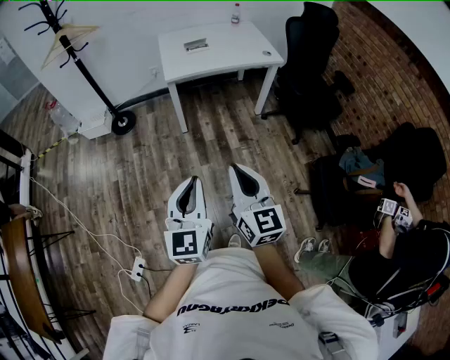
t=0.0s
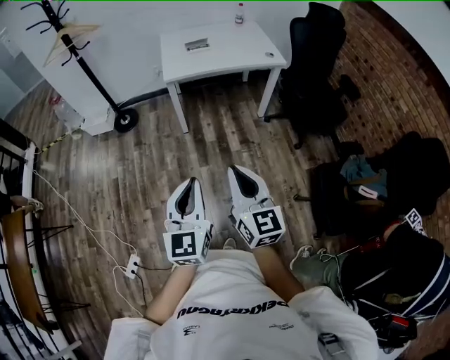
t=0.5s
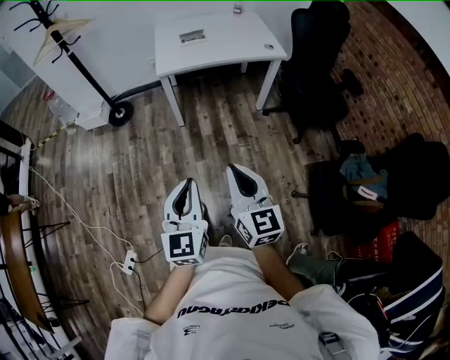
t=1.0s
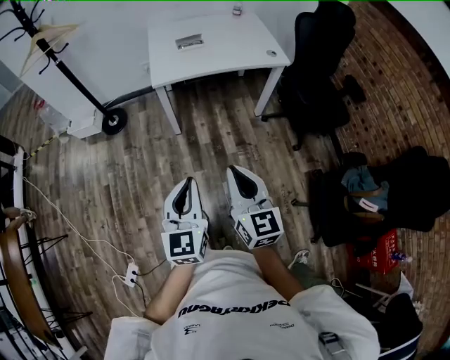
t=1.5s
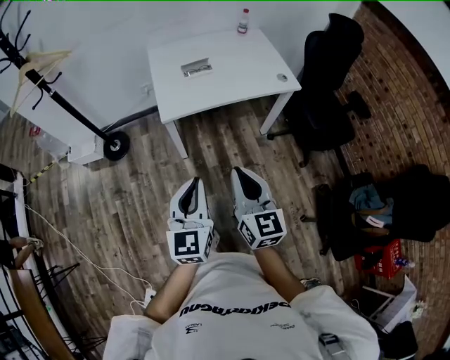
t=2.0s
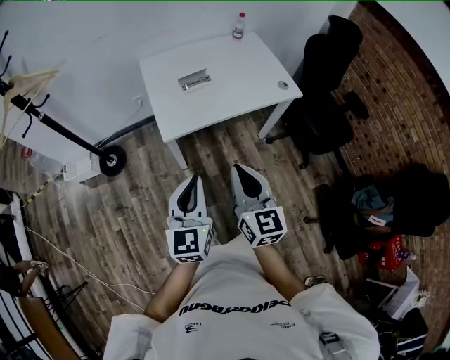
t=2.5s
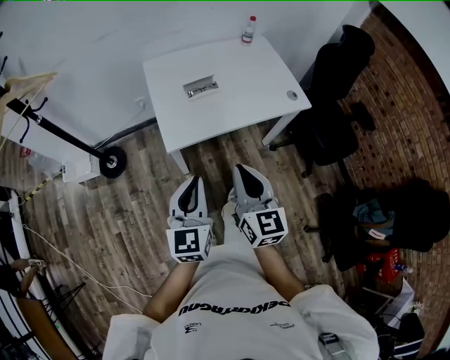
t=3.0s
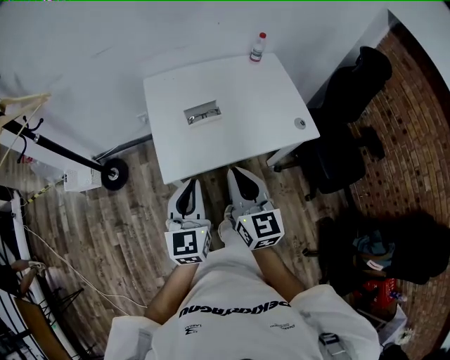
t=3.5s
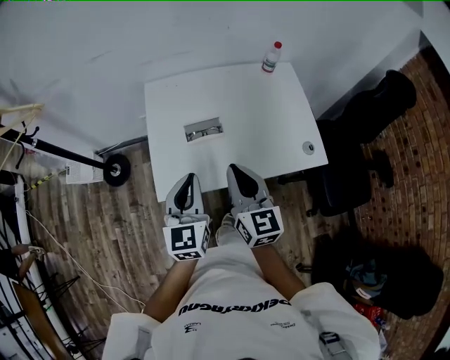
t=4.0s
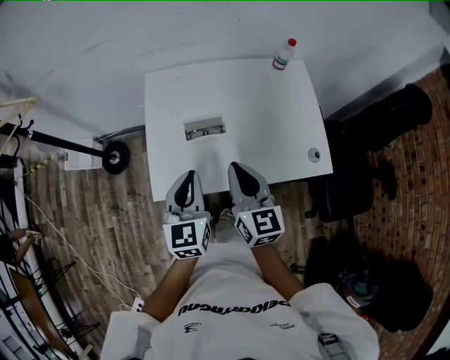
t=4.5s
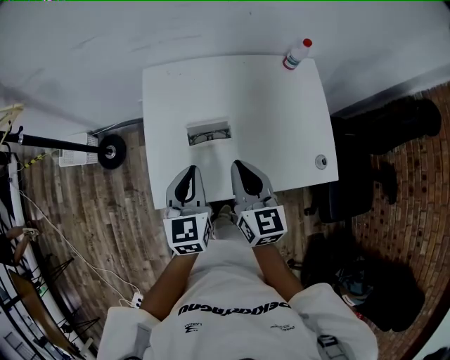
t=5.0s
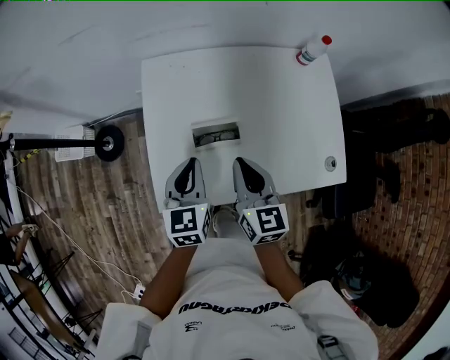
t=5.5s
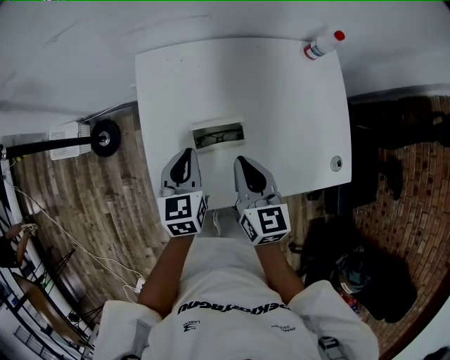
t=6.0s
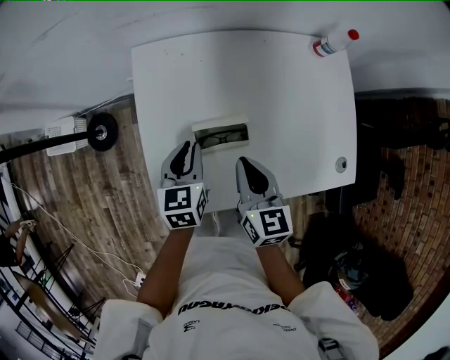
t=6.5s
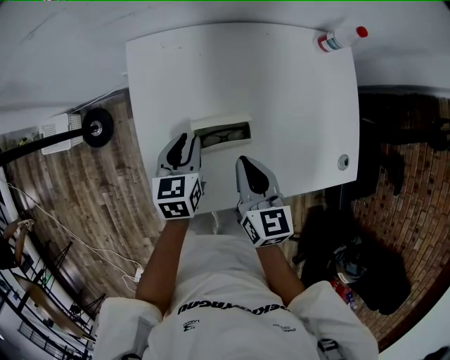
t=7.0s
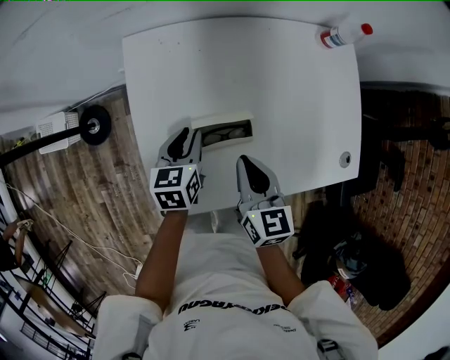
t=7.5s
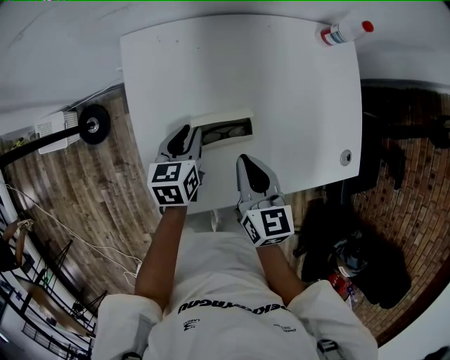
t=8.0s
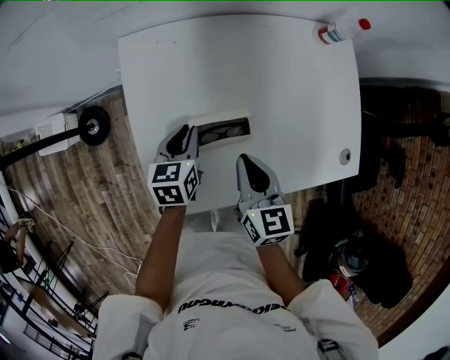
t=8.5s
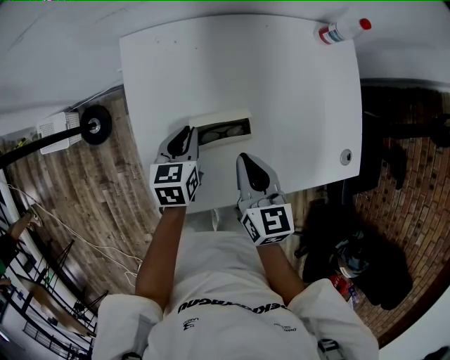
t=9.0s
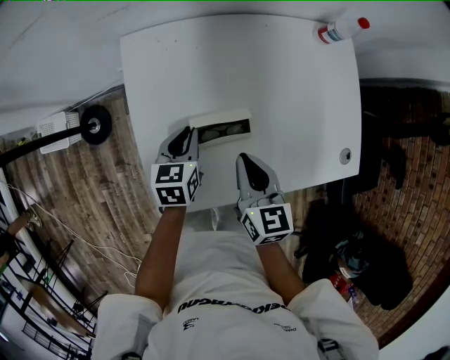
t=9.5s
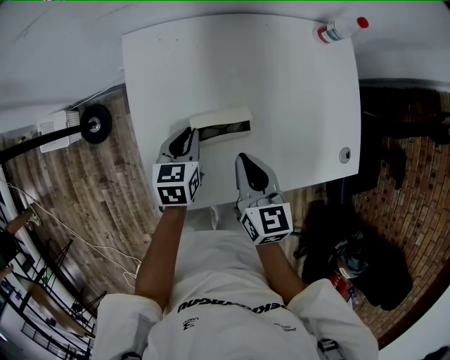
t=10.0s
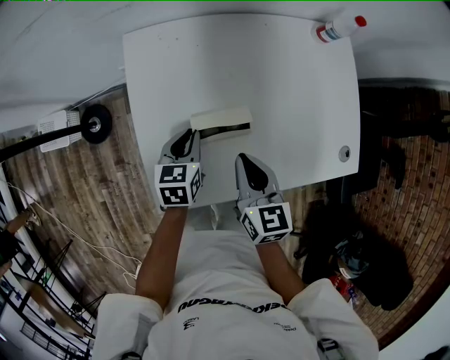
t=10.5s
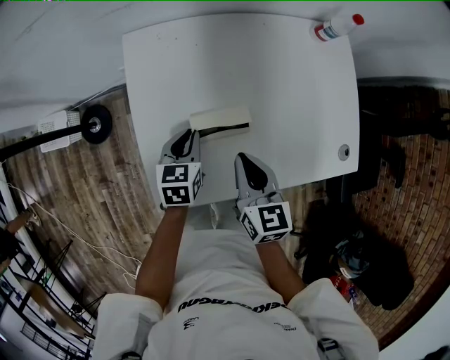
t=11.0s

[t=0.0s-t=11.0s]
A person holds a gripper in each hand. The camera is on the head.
t=0.0s to t=2.0s: Both grippers move forward, about 40 cm.
t=2.0s to t=3.5s: Both grippers travel together forward, about 35 cm.
t=3.5s to t=5.5s: The grippers both shift forward and downward by about 35 cm. The left gripper turns by approximately 20 degrees.
t=5.5s to t=7.5s: The right gripper moves downward, approximately 10 cm. Meanwhile the left gripper moves downward and forward, roughly 20 cm, changes its angle by roughly 20 degrees, and opens its fingers.
t=7.5s to t=9.0s: Neither gripper changes place.
t=9.0s to t=11.0s: The grippers make only small movements.

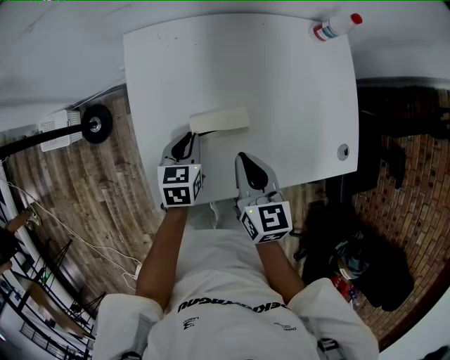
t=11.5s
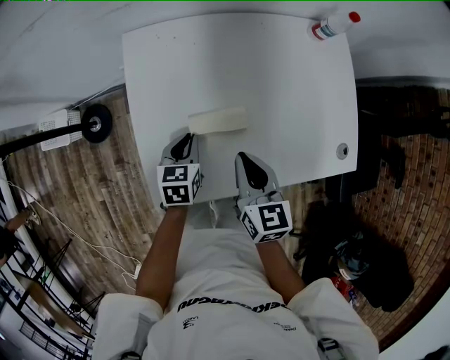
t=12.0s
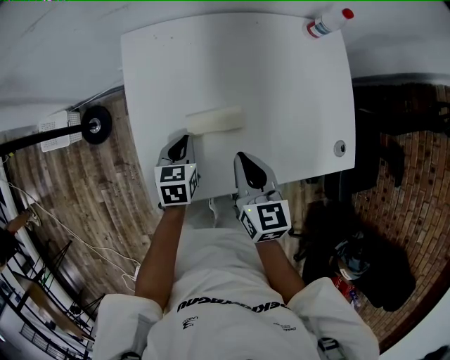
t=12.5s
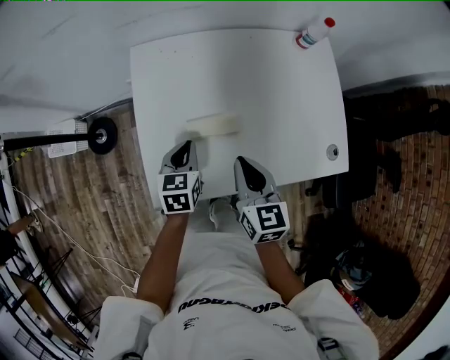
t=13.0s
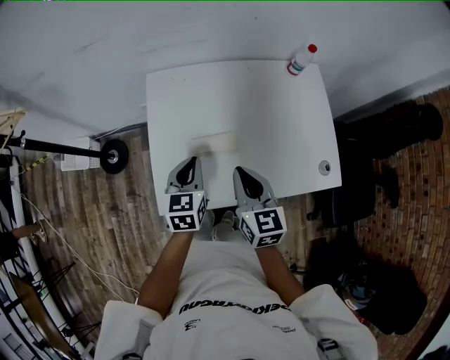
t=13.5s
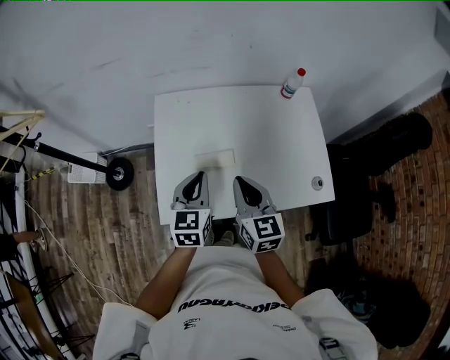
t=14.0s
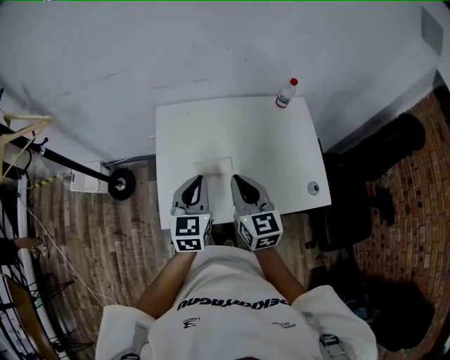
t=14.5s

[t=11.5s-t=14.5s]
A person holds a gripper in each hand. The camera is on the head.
t=11.5s to t=13.0s: The left gripper moves upward, about 5 cm. The right gripper shifts by some 5 cm.
t=13.0s to t=14.5s: The two grippers go about 20 cm upward. The left gripper swivels some 20 degrees.

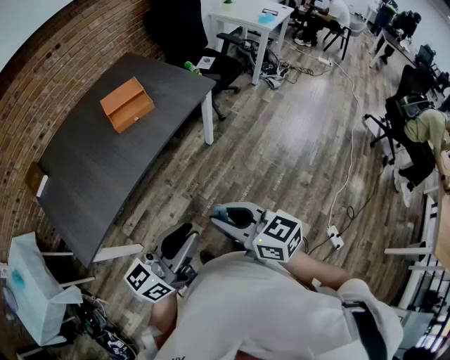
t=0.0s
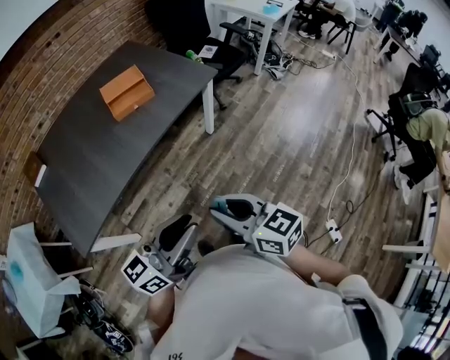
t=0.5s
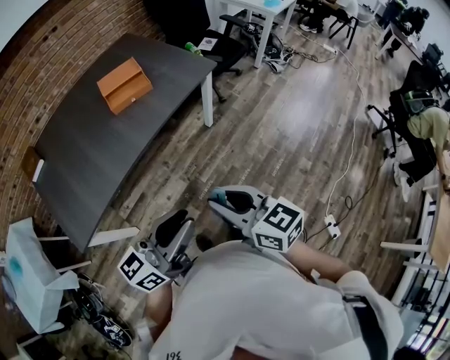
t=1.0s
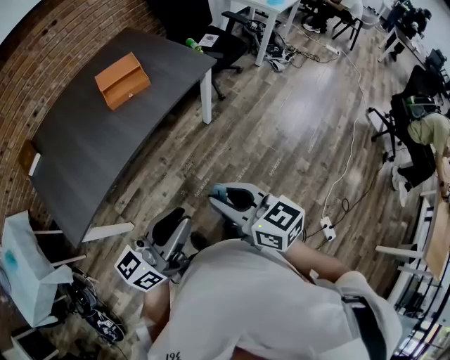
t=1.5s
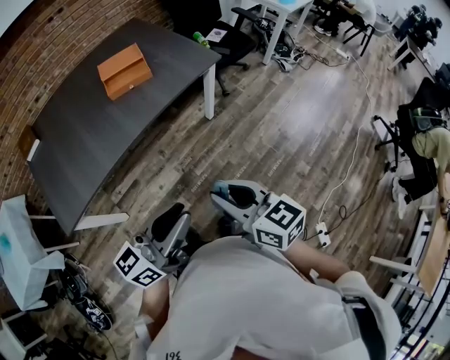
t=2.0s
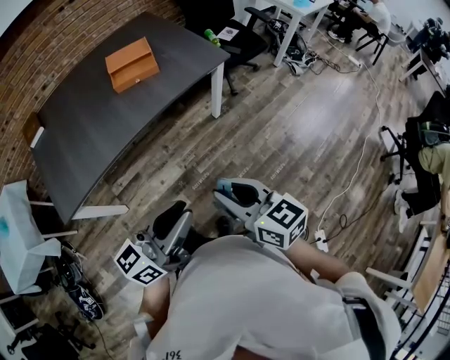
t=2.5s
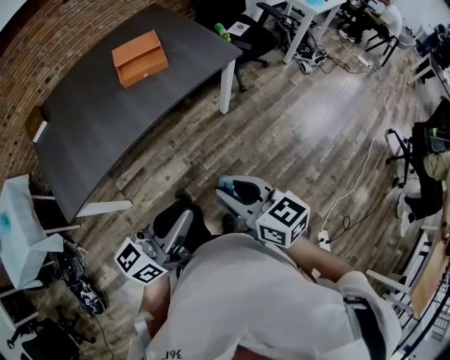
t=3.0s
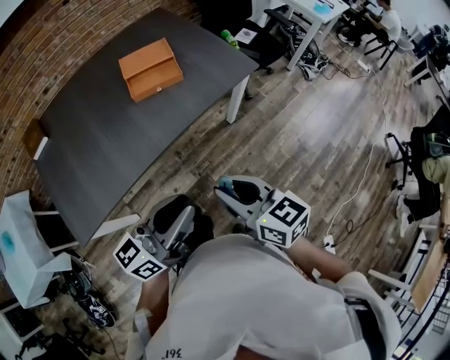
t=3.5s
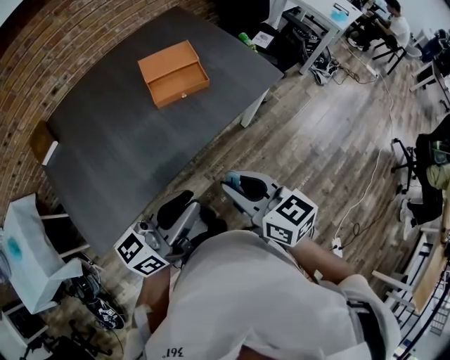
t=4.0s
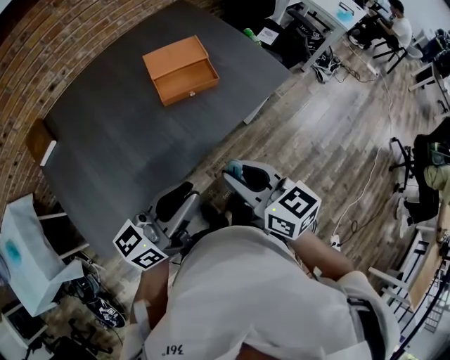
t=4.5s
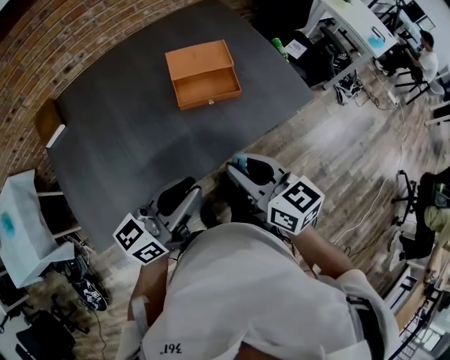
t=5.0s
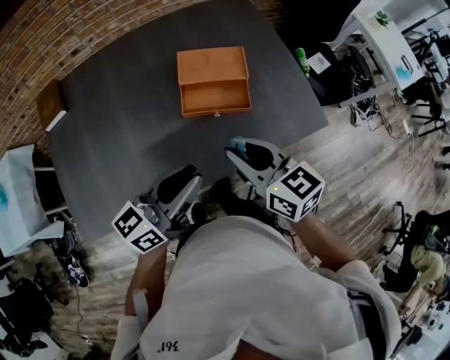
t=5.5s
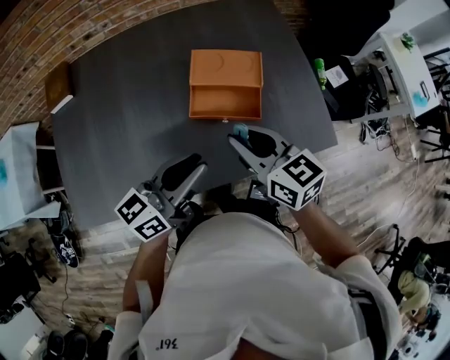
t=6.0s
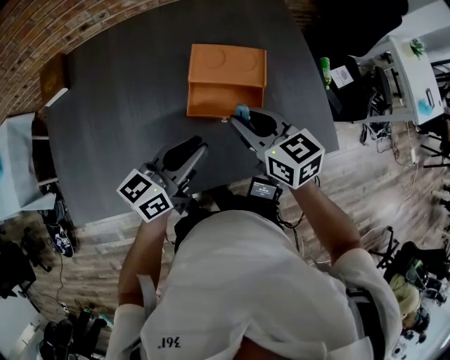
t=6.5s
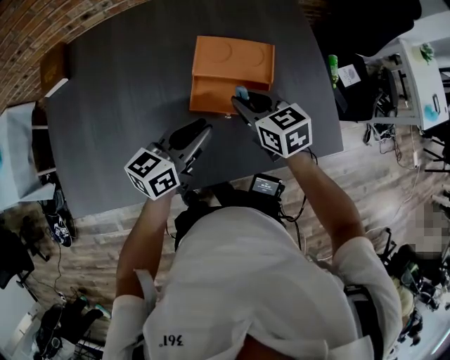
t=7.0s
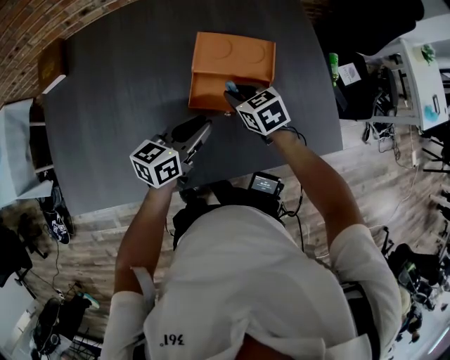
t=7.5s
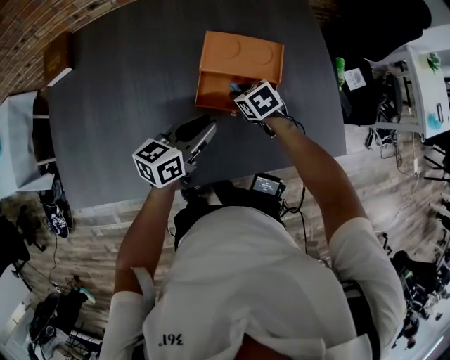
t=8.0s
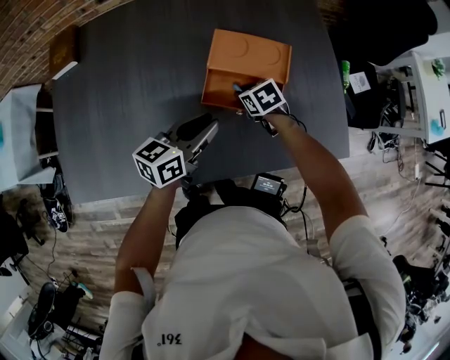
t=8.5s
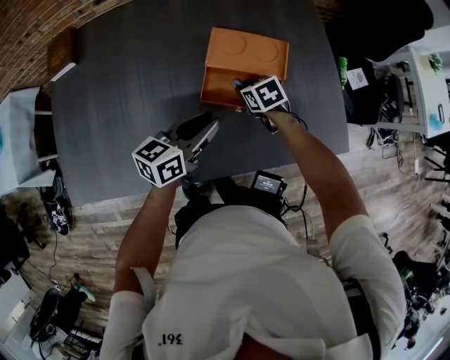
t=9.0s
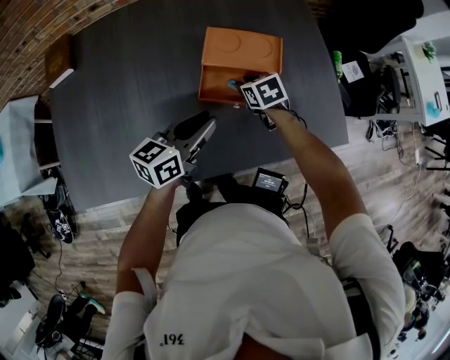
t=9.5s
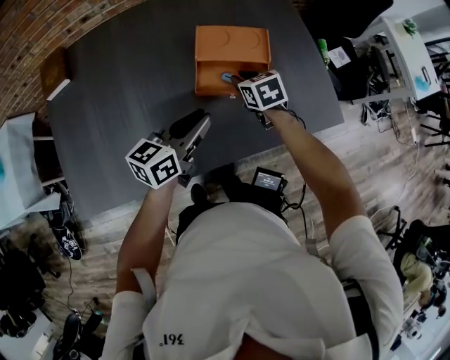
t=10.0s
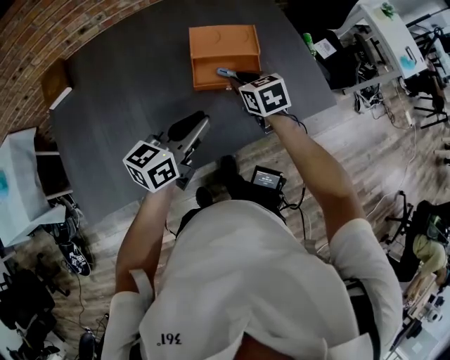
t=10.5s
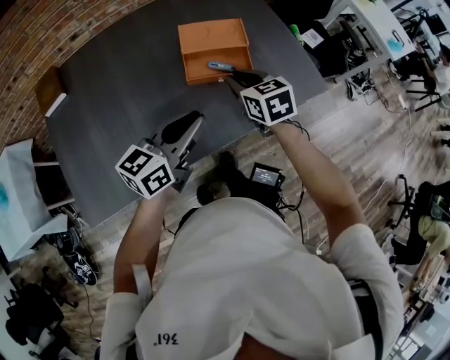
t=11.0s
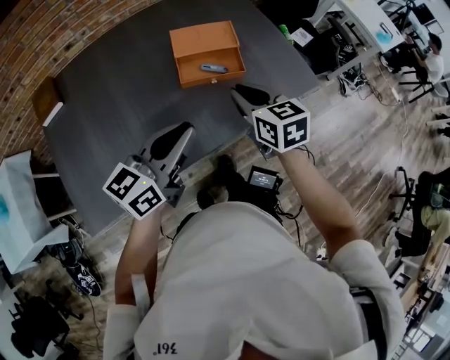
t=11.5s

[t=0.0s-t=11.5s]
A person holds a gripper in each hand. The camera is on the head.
t=0.0s to t=2.0s: The right gripper heads to the right, covering roughly 5 cm.
t=2.0s to t=4.0s: Both grippers travel together forward and to the left, approximately 25 cm.
t=4.0s to t=6.0s: Both grippers move forward, some 25 cm. The right gripper rotates some 20 degrees, while the left gripper changes its angle by about 20 degrees.
t=6.0s to t=7.5s: Both grippers travel together downward and forward, about 20 cm. The right gripper changes its angle by roughly 30 degrees.
t=7.5s to t=9.5s: The right gripper ends up roughly 5 cm from where it was.
t=9.5s to t=11.5s: The right gripper goes approximately 30 cm upward and backward, and turns by about 30 degrees. Meanwhile the left gripper travels backward and upward by about 20 cm, and turns by approximately 20 degrees.

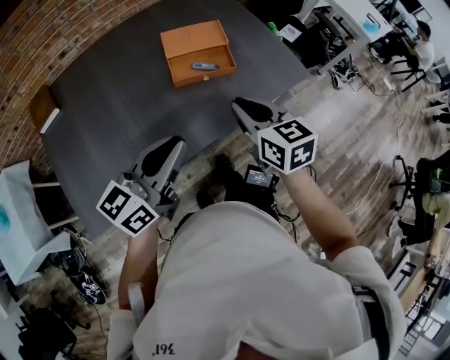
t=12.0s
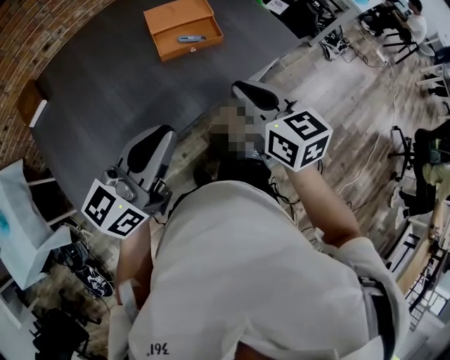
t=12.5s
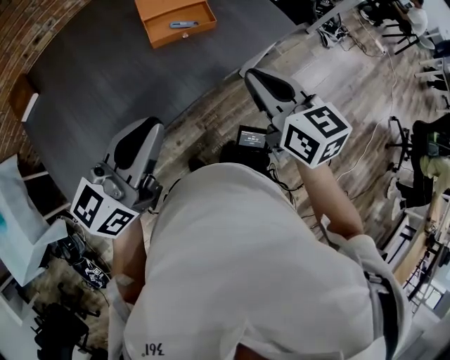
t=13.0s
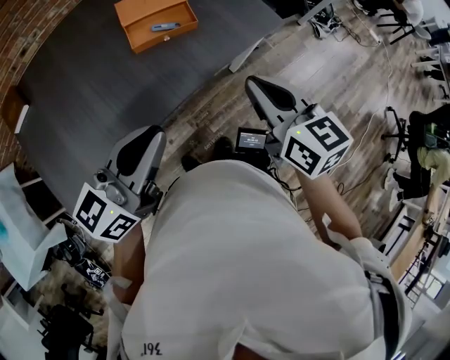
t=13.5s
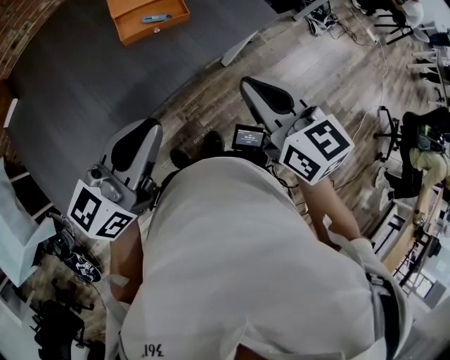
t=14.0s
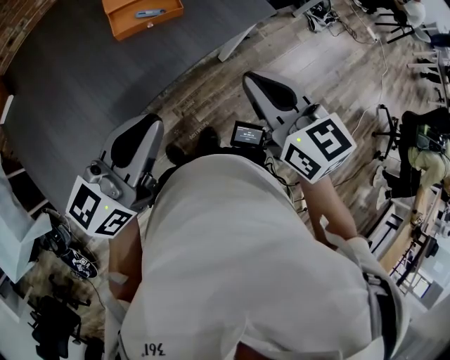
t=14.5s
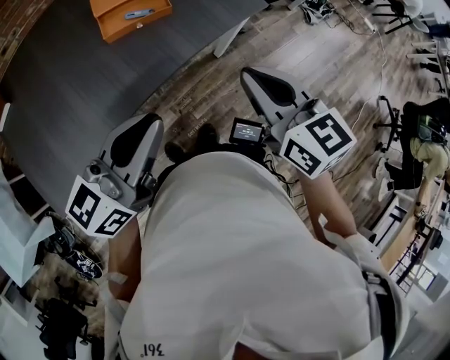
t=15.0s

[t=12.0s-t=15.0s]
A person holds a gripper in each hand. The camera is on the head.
t=12.0s to t=13.5s: The left gripper is displaced to the right by approximately 5 cm. The right gripper moves to the right and backward, about 10 cm.
t=13.5s to t=15.0s: The grippers both shift to the right by some 5 cm.
